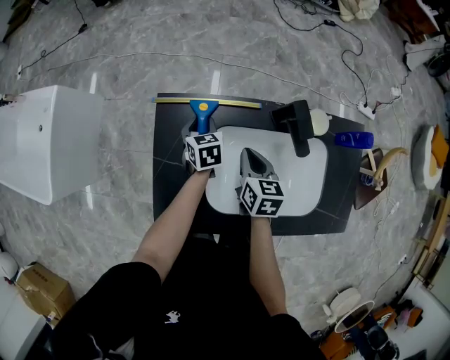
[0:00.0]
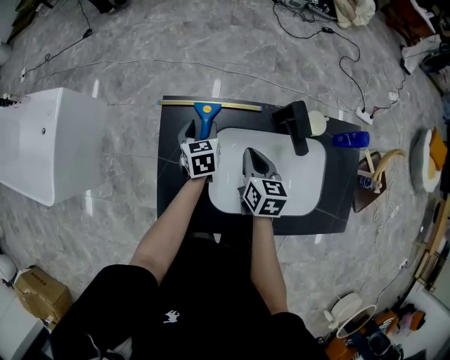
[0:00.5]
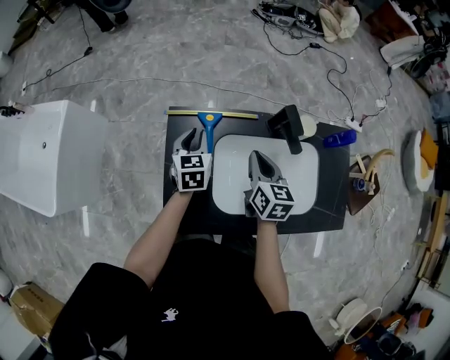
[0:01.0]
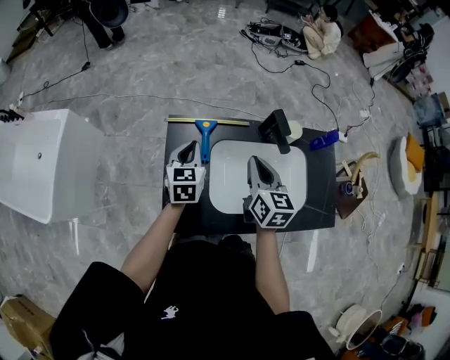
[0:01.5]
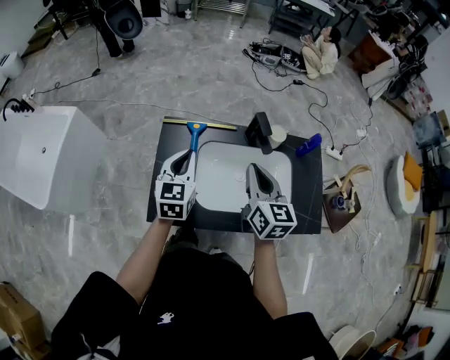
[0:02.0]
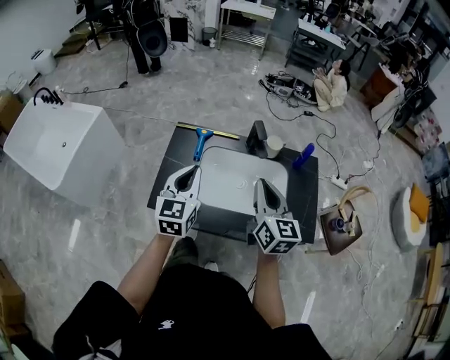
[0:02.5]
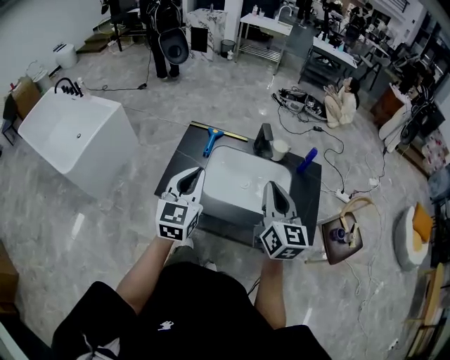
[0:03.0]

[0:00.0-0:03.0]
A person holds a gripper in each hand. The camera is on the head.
0.0 to 1.5 s: The left gripper is displaced upward and backward by roughly 20 cm, swivels roughly 30 degrees, and closes. Meanwhile the right gripper heads upward, covering approximately 15 cm, and rotates about 20 degrees.
1.5 to 3.0 s: The right gripper travels backward, upward and to the right by about 30 cm, and rotates approximately 20 degrees. The left gripper goes some 35 cm backward and upward, and rotates some 20 degrees.

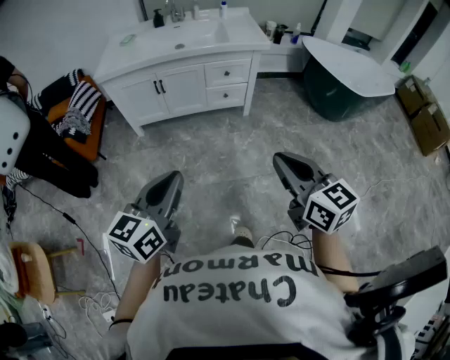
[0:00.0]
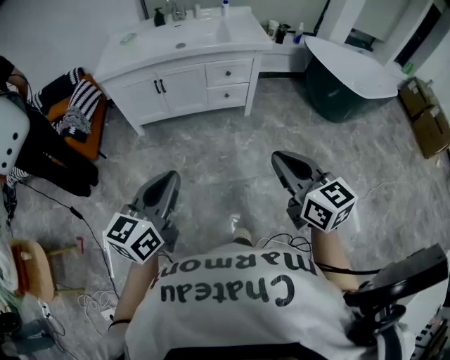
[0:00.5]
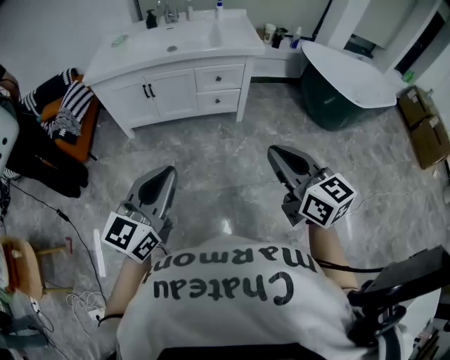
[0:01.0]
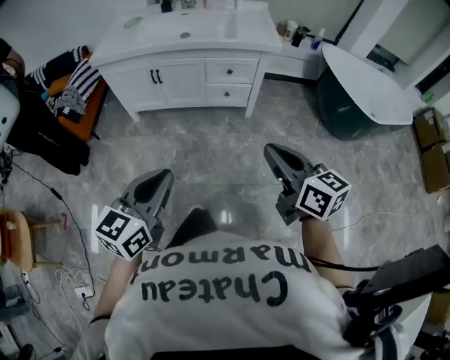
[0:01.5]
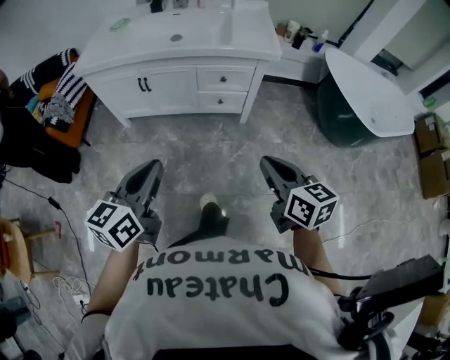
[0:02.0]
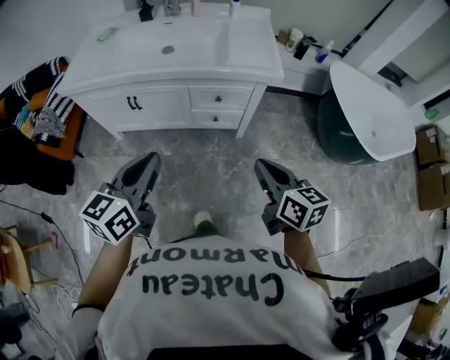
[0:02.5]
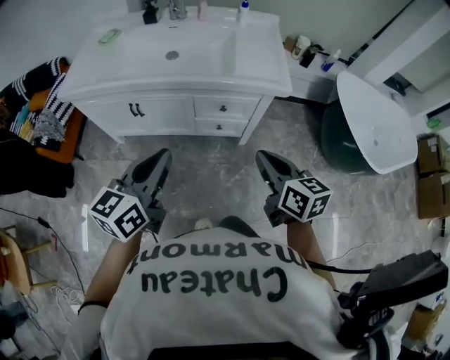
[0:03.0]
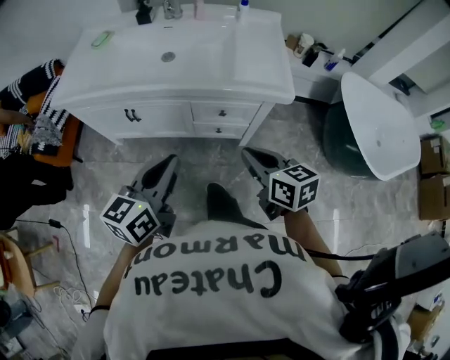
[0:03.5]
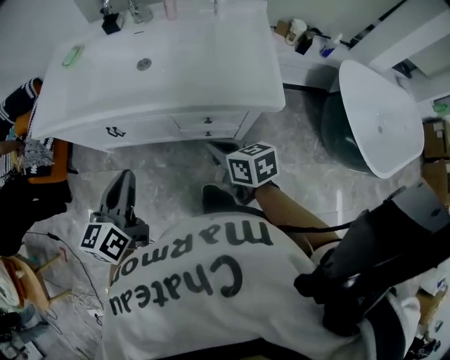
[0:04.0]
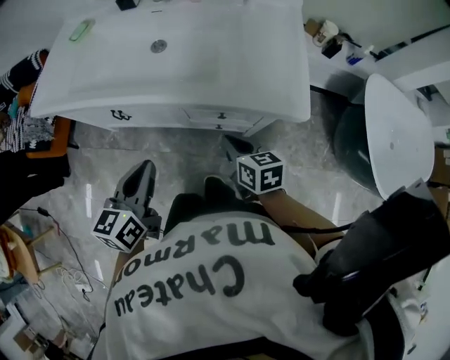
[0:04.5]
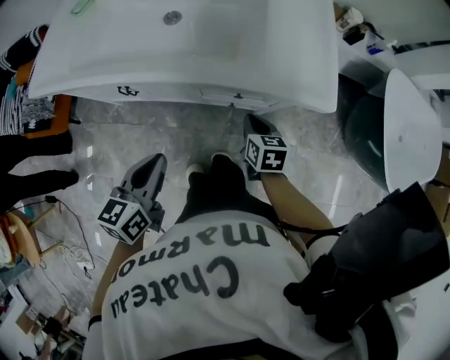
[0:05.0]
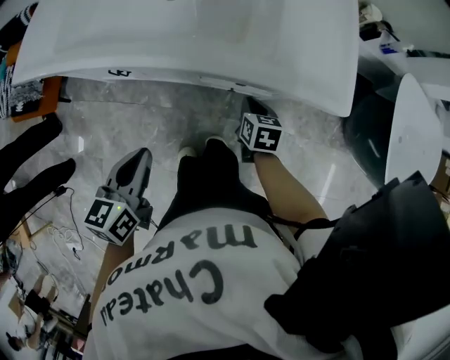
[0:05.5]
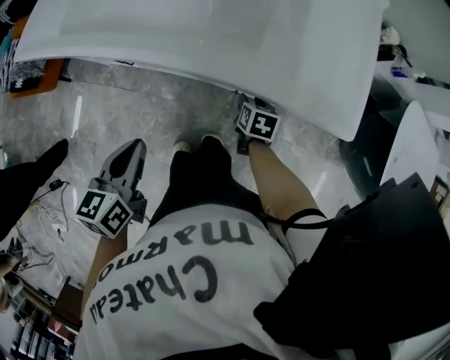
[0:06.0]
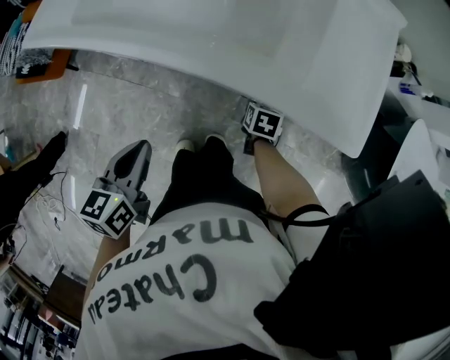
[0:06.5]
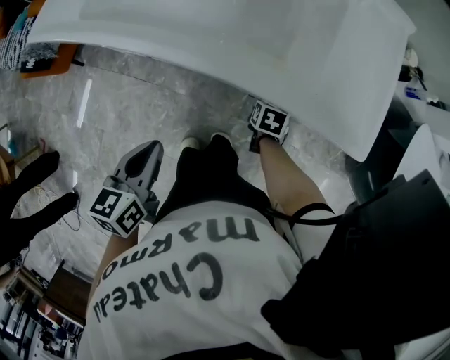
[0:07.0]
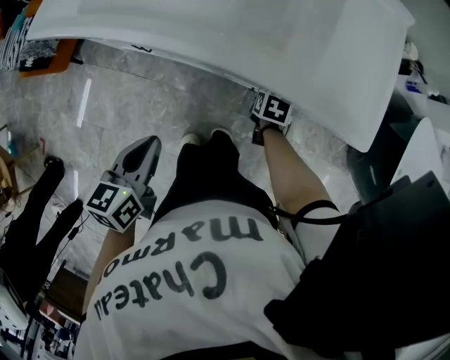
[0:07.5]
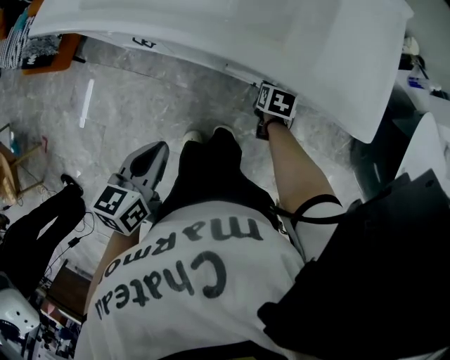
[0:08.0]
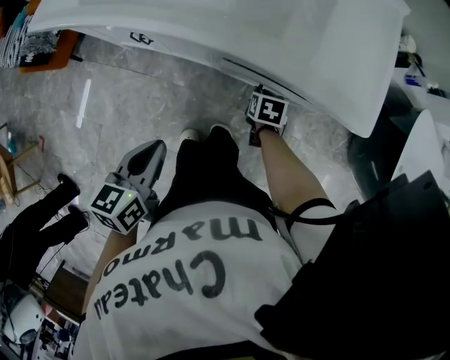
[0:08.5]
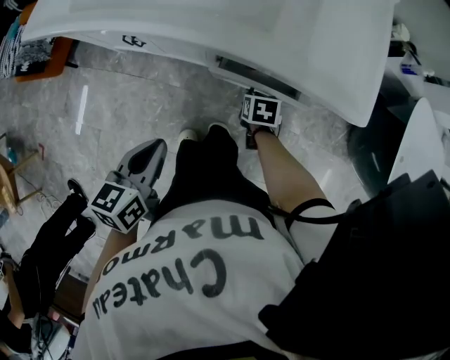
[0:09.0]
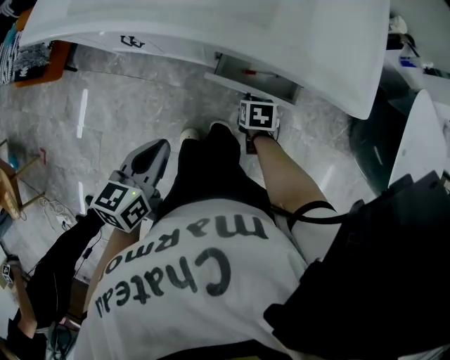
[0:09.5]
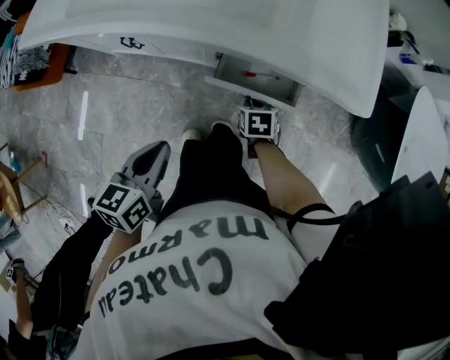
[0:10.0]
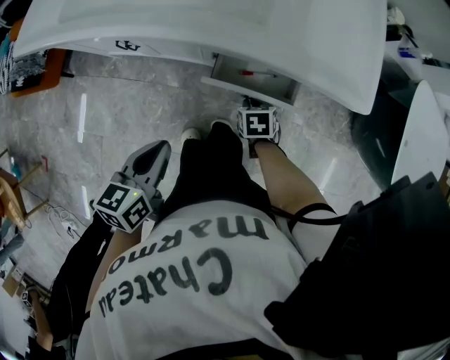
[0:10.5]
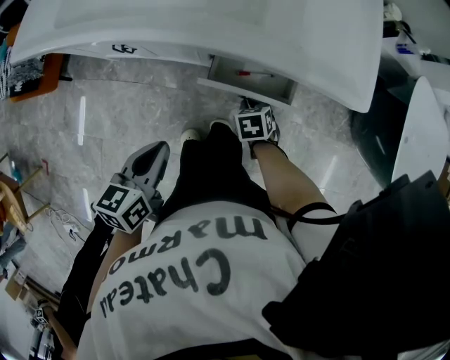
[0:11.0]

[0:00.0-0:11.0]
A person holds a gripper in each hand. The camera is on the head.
0.0 to 2.0 s: The left gripper shifts some 20 cm forward and to the right; the right gripper moves forward, to the right and downward, about 25 cm.
2.0 to 3.5 s: Both grippers travel together forward, approximately 25 cm.
3.5 to 5.5 s: The right gripper heads downward and forward, covering roughly 35 cm, and swivels some 30 degrees, while the left gripper is displaced downward, forward and to the left by about 20 cm, and rotates approximately 20 degrees.
5.5 to 7.5 s: The right gripper is displaced downward by roughly 10 cm, and opens its fingers.
7.5 to 9.0 s: The left gripper shifts by approximately 5 cm, while the right gripper is displaced backward by approximately 5 cm.
9.0 to 11.0 s: The grippers stay close to where they were, moving slightly.

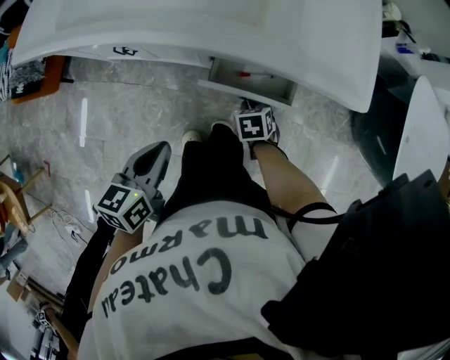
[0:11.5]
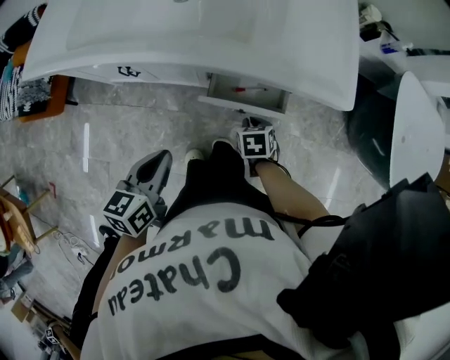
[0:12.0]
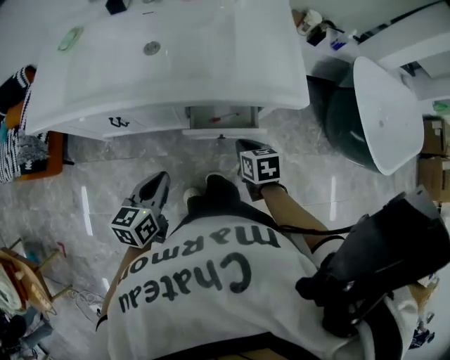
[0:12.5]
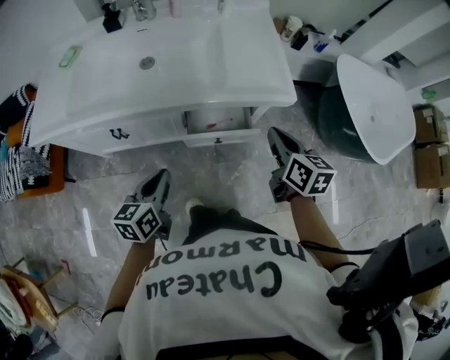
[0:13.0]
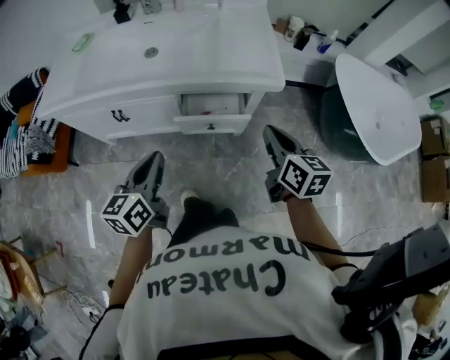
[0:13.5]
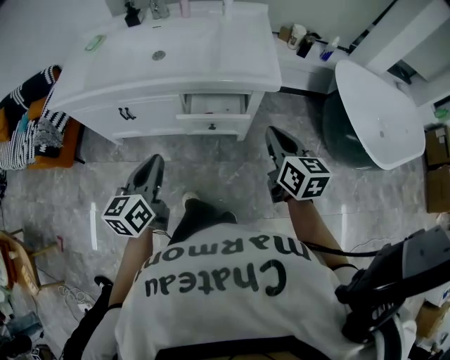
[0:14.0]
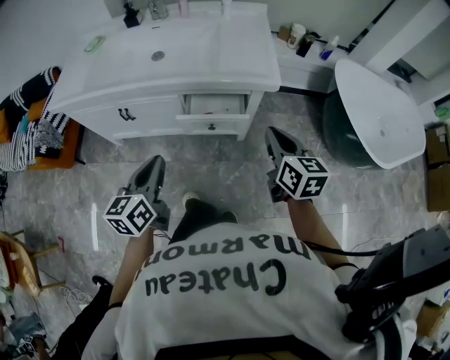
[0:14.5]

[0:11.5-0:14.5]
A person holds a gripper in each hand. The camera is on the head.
11.5 to 13.0 s: The right gripper heads upward, covering some 30 cm, and points its fingers roughly 40 degrees further upward. Meanwhile the left gripper travels upward by roughly 5 cm.
13.0 to 14.5 s: The left gripper goes roughly 10 cm backward, upward and to the right. Meanwhile the right gripper travels backward by roughly 10 cm.

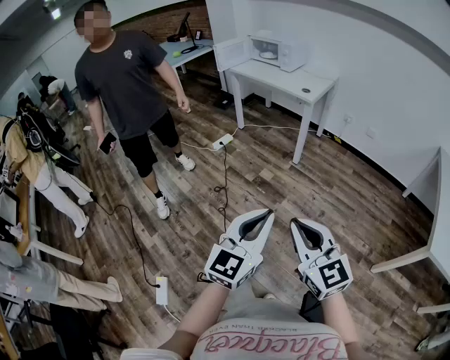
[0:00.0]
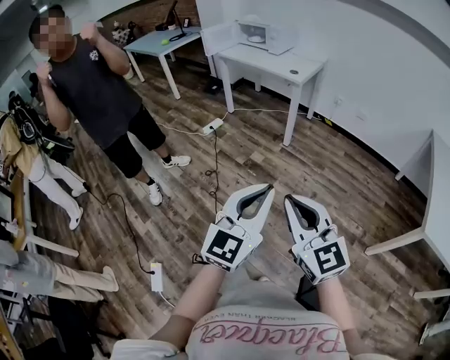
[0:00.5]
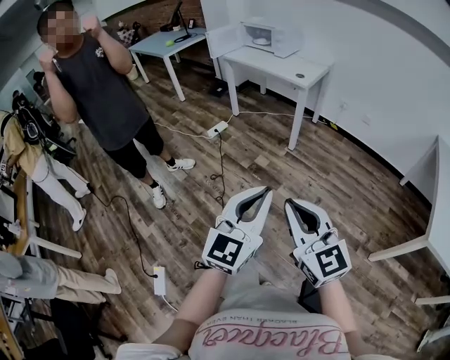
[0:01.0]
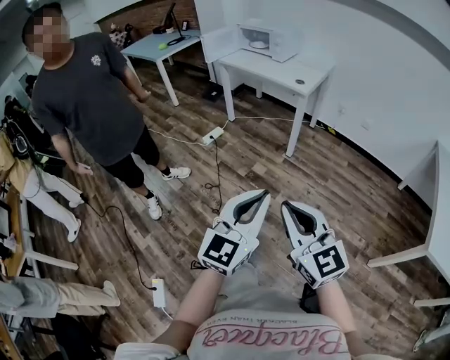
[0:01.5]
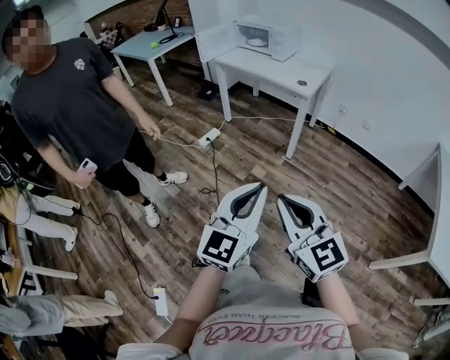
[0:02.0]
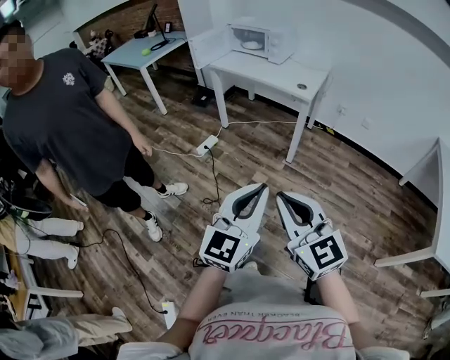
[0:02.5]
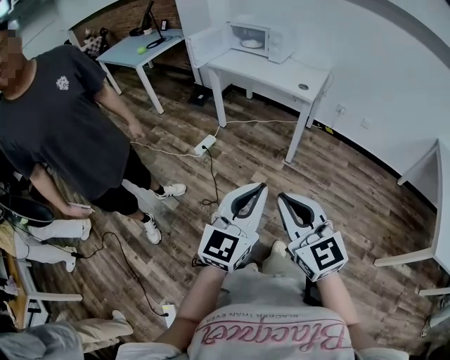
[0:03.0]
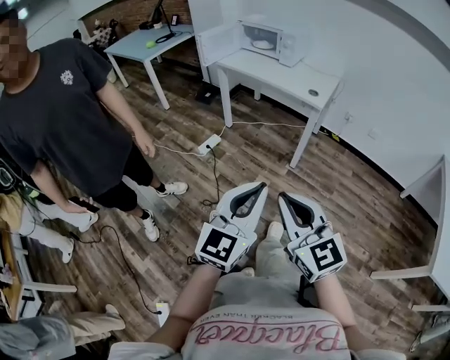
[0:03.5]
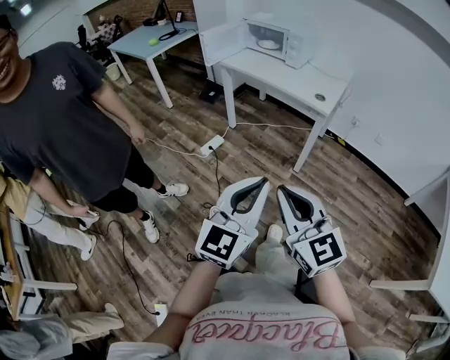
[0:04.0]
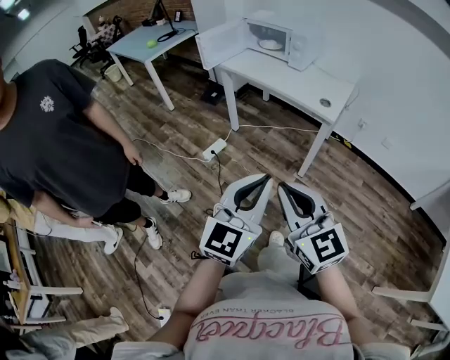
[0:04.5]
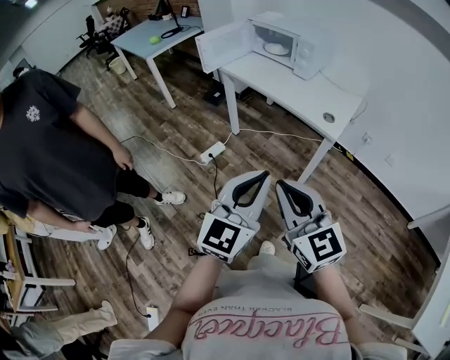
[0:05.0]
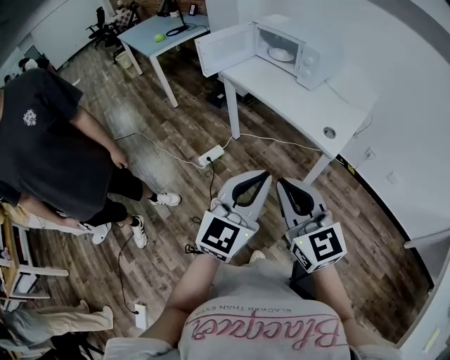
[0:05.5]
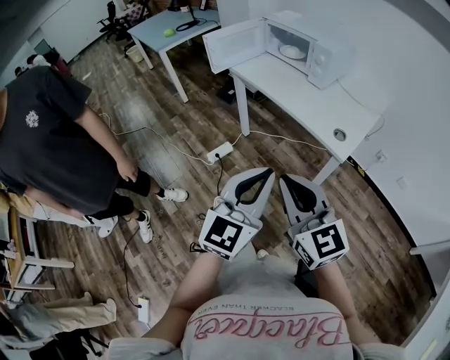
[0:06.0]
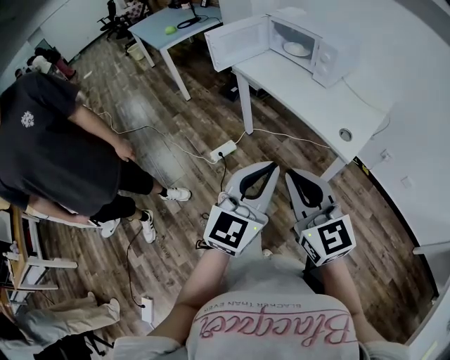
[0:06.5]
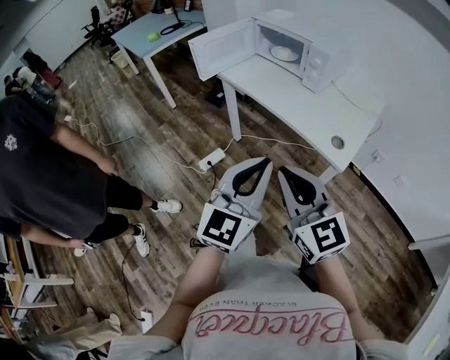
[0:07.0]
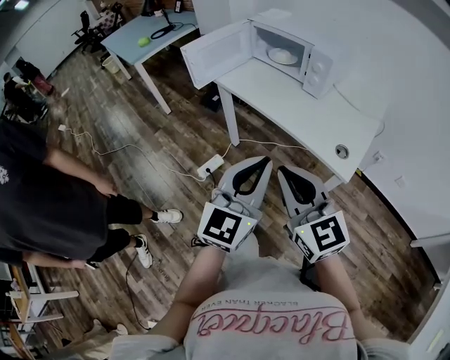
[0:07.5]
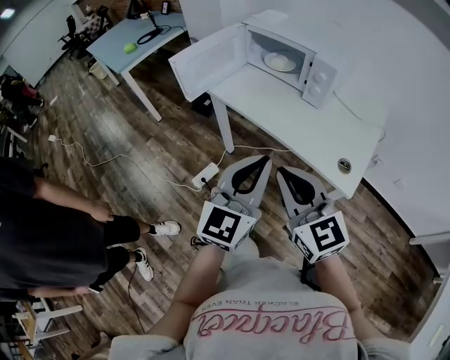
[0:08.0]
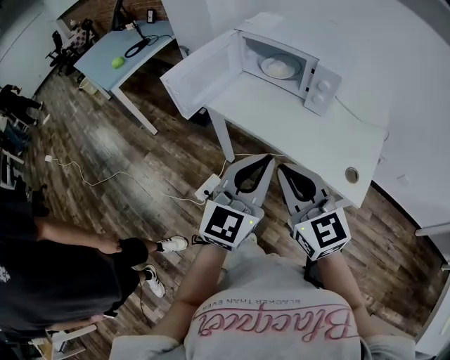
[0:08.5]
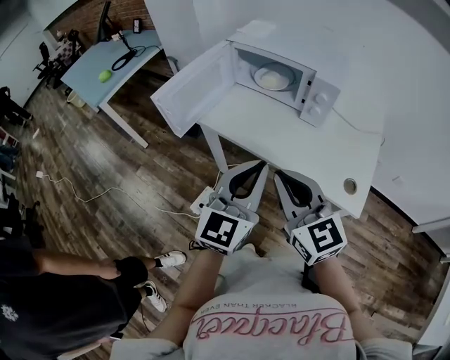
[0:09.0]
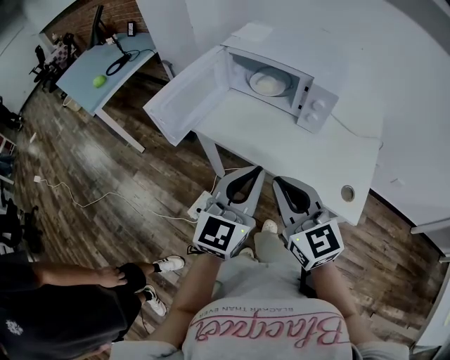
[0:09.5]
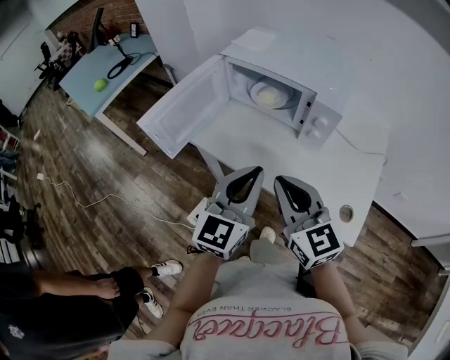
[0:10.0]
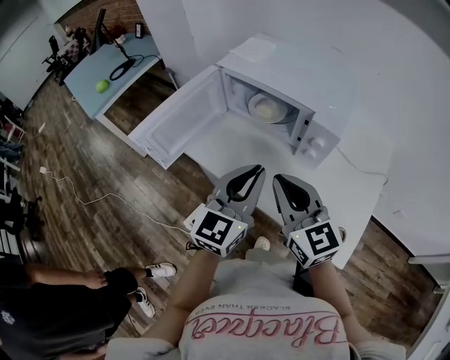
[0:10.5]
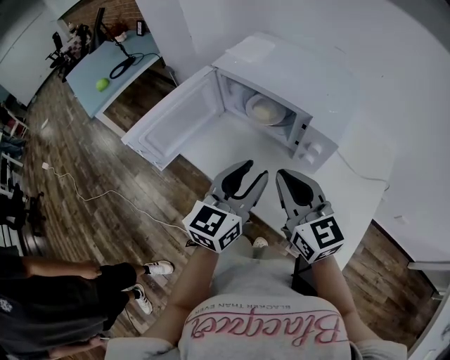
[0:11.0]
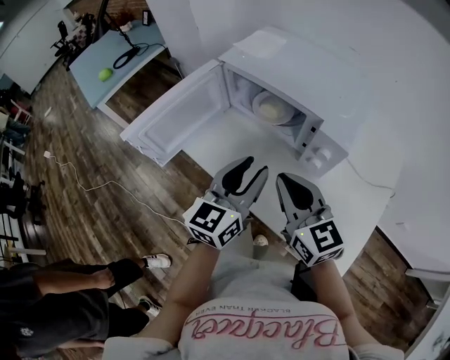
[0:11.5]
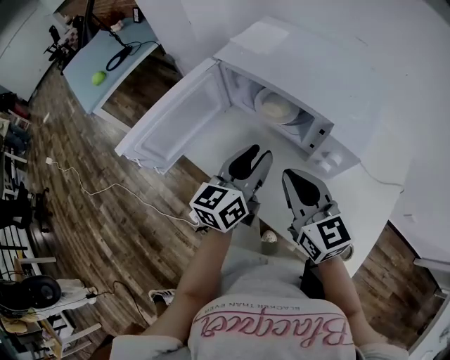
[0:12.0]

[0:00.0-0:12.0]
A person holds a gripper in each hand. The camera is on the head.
0.0 to 2.0 s: Both grippers travel together forward, some 20 cm.
2.0 to 4.0 s: Both grippers travel together forward, approximately 20 cm.
4.0 to 6.0 s: The two grippers go about 30 cm forward.
6.0 to 8.0 s: The grippers both shift forward by approximately 25 cm.
8.0 to 10.0 s: The grippers both shift forward by about 20 cm.
10.0 to 12.0 s: The two grippers go roughly 15 cm forward. The left gripper swivels about 30 degrees, and opens.
